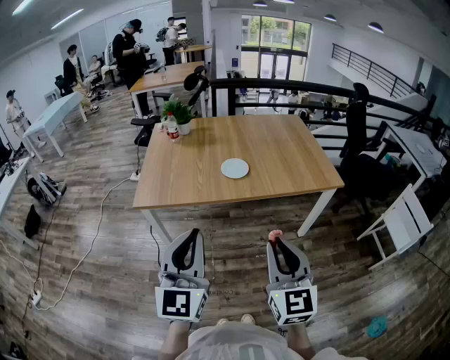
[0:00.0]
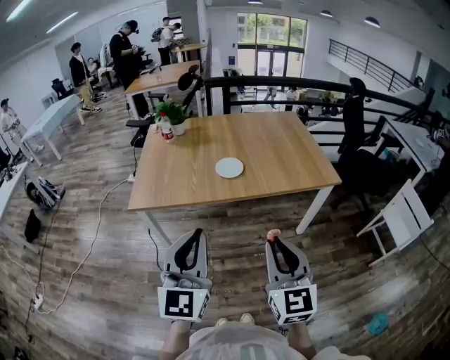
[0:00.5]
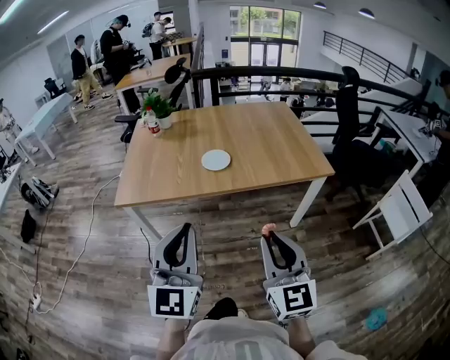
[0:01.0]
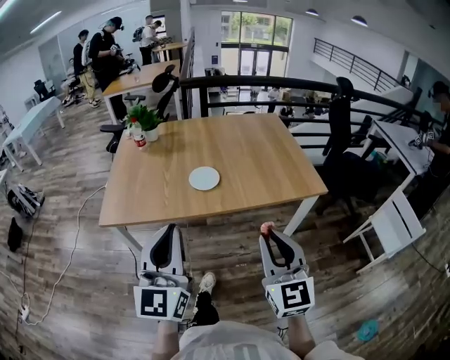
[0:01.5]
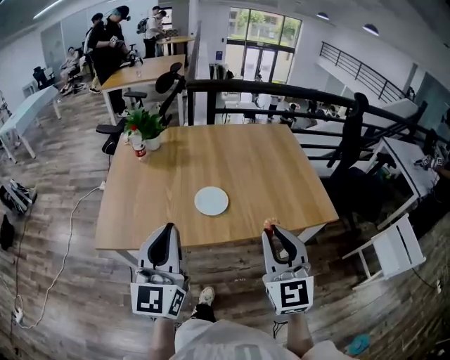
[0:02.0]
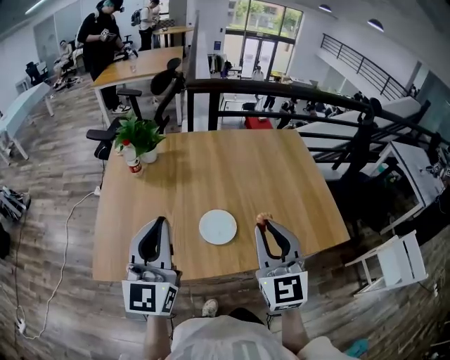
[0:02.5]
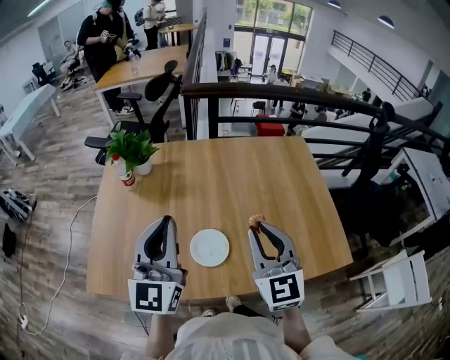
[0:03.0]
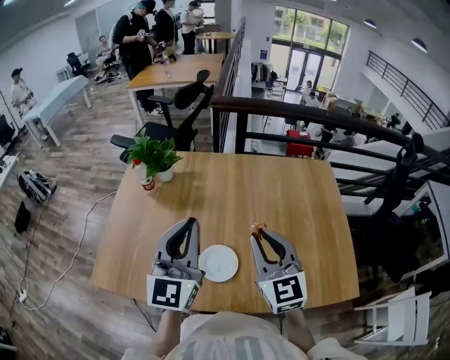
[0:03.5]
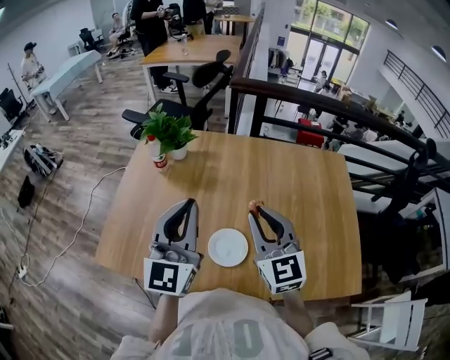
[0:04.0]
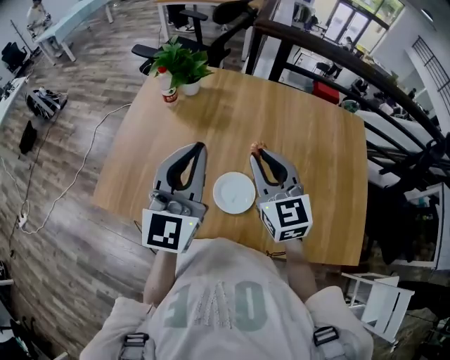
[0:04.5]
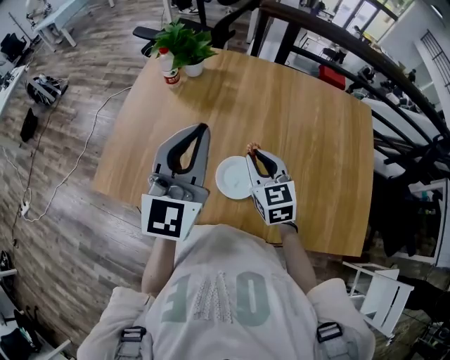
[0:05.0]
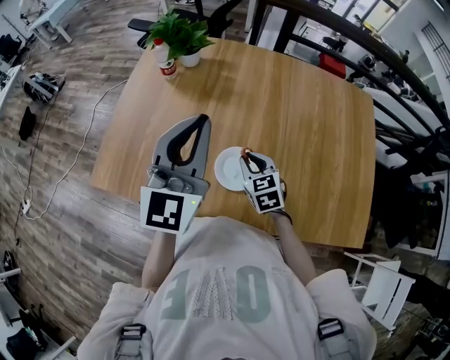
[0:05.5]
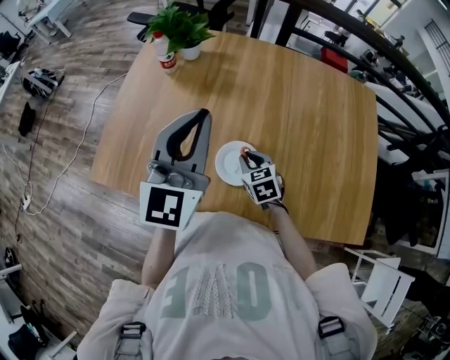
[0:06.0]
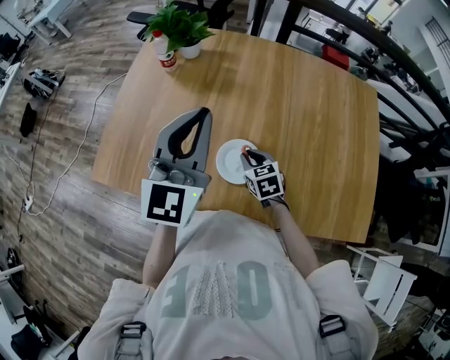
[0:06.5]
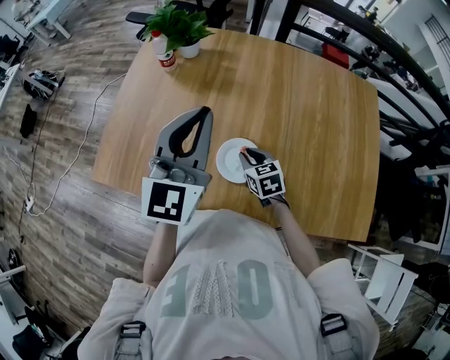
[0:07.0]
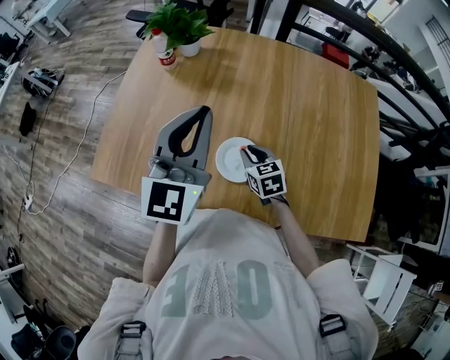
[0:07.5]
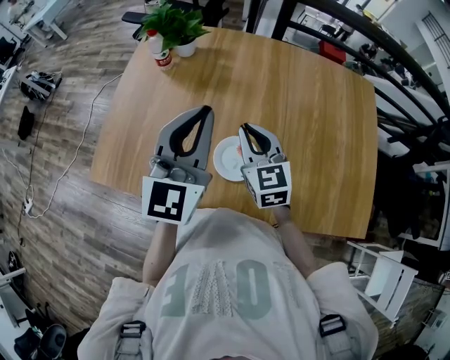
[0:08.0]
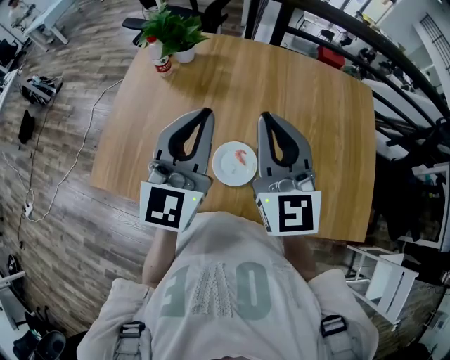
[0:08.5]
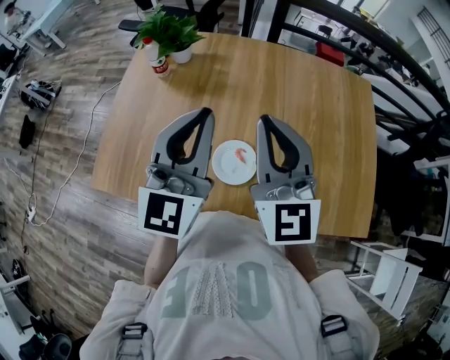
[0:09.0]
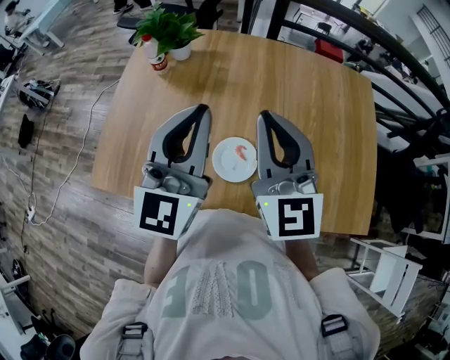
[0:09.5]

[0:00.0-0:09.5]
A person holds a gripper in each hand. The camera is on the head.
0:00.0 to 0:02.0: Both grippers move forward, about 25 cm.
0:02.0 to 0:04.0: The two grippers go approximately 30 cm forward. The right gripper changes its angle by some 30 degrees.
0:04.0 to 0:05.5: The right gripper moves downward, some 25 cm, and points its fingers about 30 degrees further downward.
0:05.5 to 0:07.5: The grippers move only a little.
0:07.5 to 0:09.5: The right gripper shifts about 35 cm upward, and angles its fingers upward, by approximately 40 degrees.

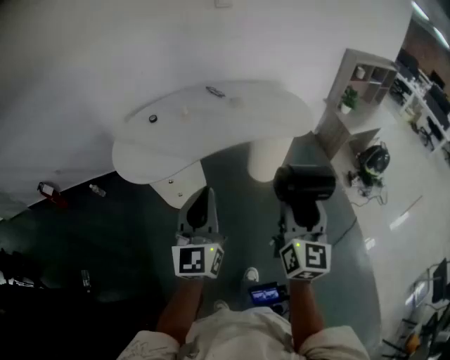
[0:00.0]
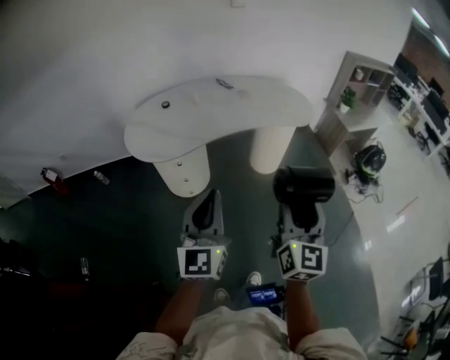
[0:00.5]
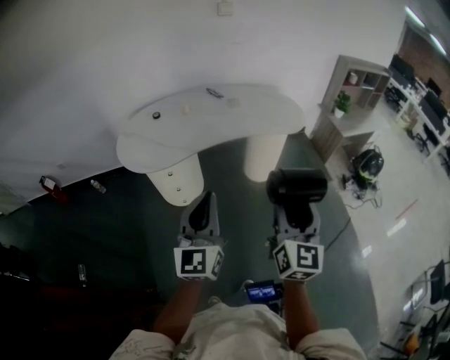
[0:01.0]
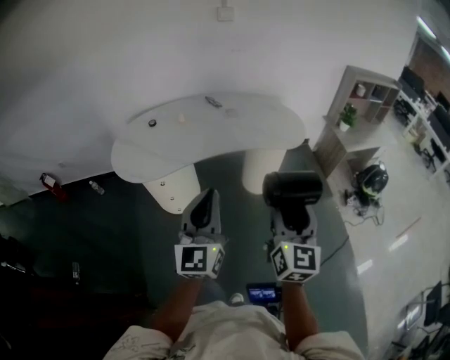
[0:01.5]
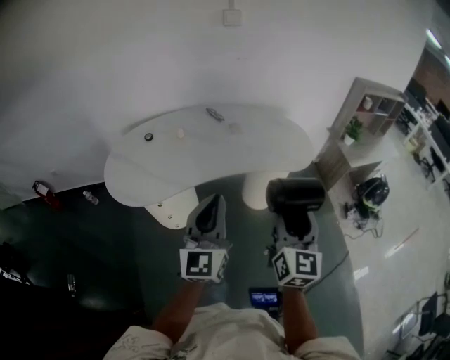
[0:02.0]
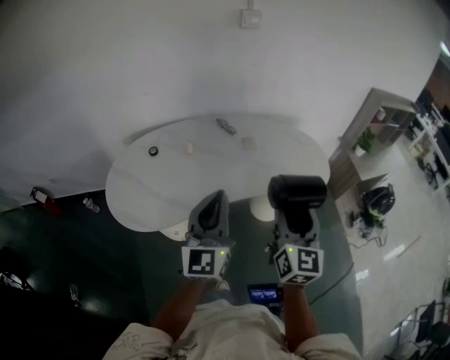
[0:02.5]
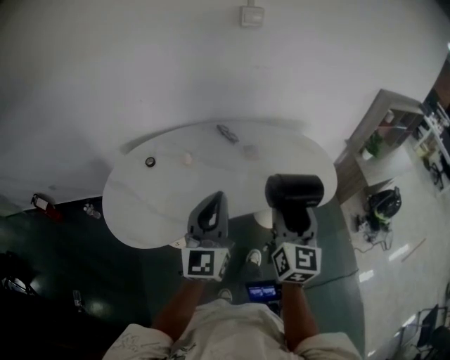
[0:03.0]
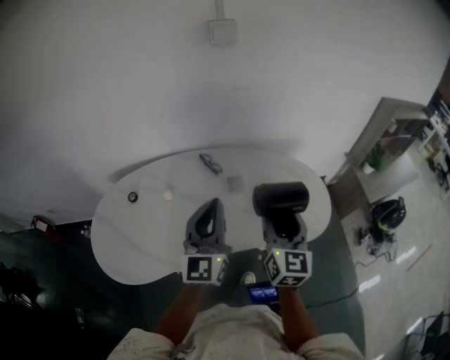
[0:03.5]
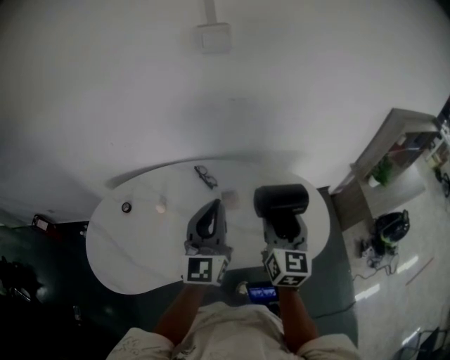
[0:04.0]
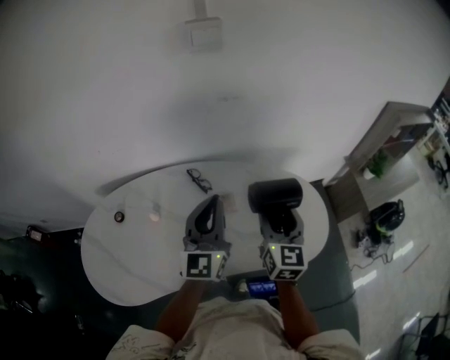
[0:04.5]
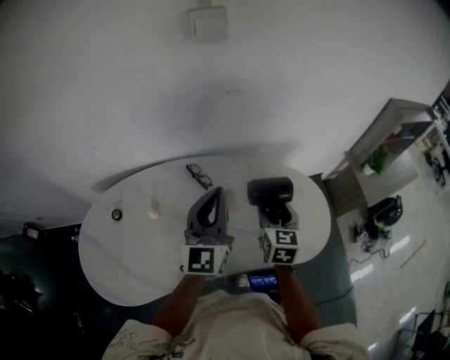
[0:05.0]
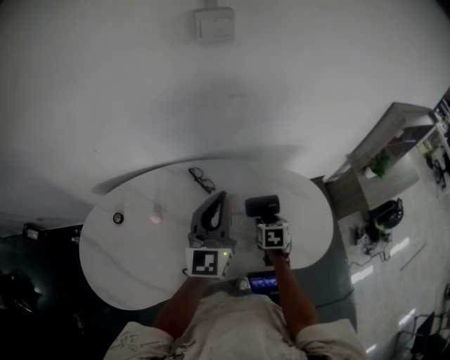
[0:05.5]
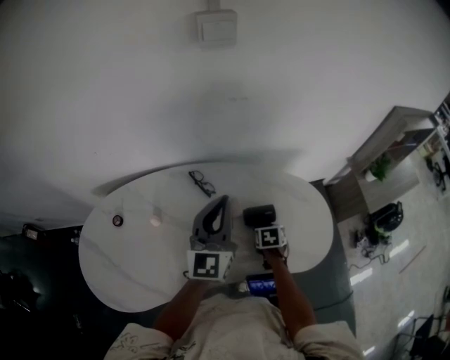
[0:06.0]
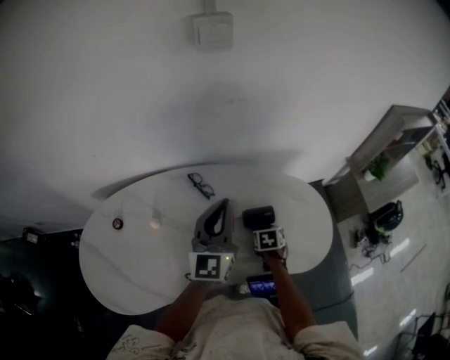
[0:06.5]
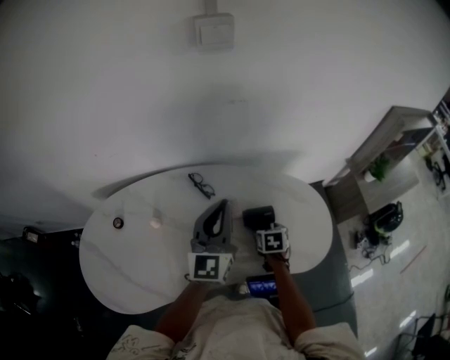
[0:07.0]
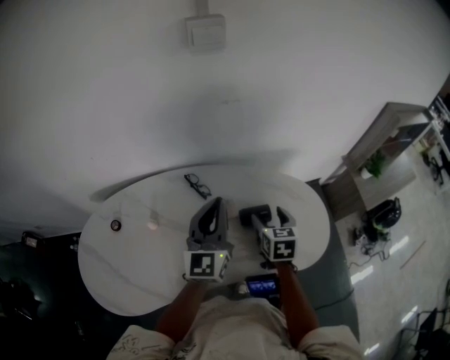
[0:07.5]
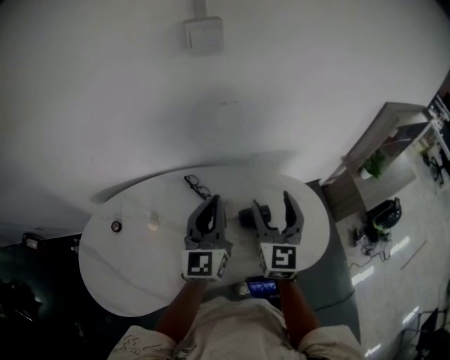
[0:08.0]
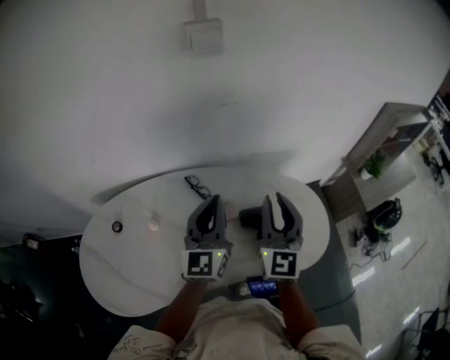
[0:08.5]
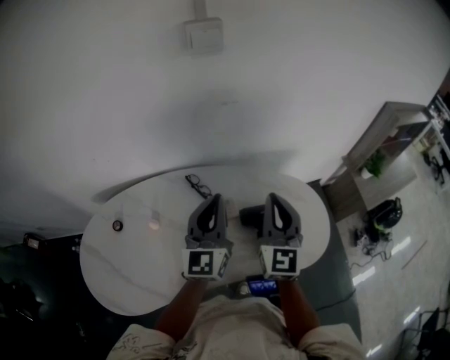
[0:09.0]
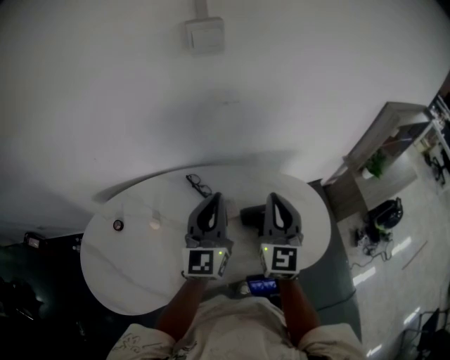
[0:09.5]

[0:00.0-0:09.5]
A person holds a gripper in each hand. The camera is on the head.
0:00.0 to 0:02.0: The left gripper travels forward and to the right by about 10 cm. The right gripper moves forward, roughly 10 cm.
0:02.0 to 0:04.0: The pair of grippers is taken forward, roughly 40 cm.
0:04.0 to 0:05.5: The left gripper shifts some 10 cm forward, while the right gripper heads downward, covering some 25 cm, and angles its fingers downward, by roughly 50 degrees.
0:05.5 to 0:07.5: The right gripper goes approximately 10 cm upward.
0:07.5 to 0:09.5: The right gripper shifts about 15 cm upward, tilts its fingers approximately 40 degrees upward, and closes.

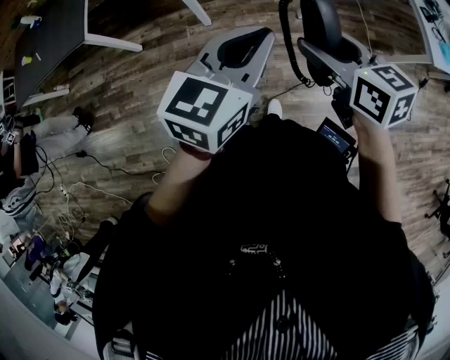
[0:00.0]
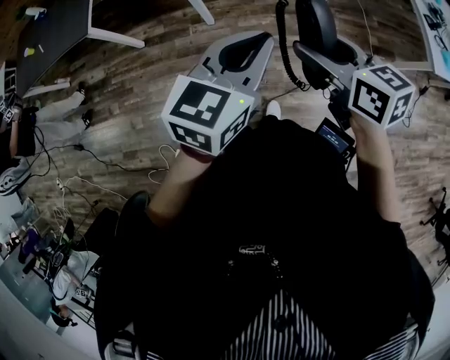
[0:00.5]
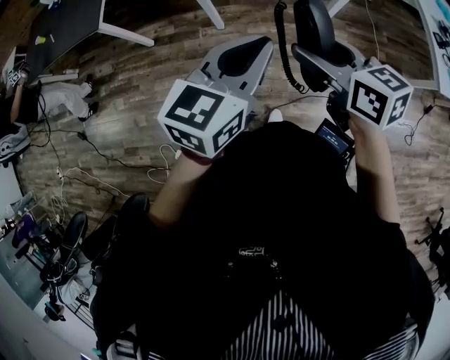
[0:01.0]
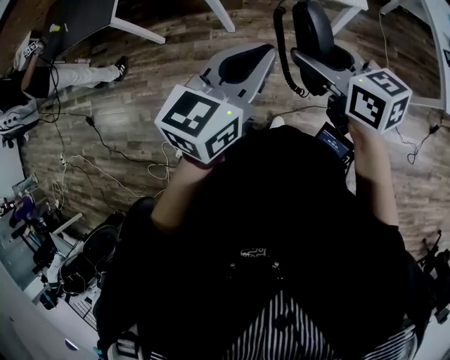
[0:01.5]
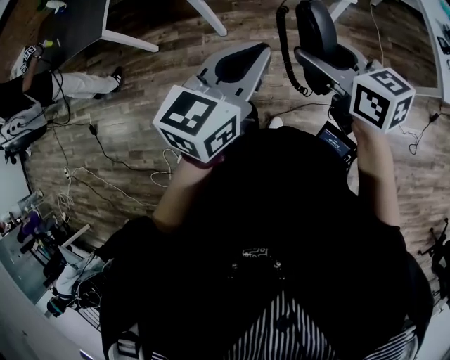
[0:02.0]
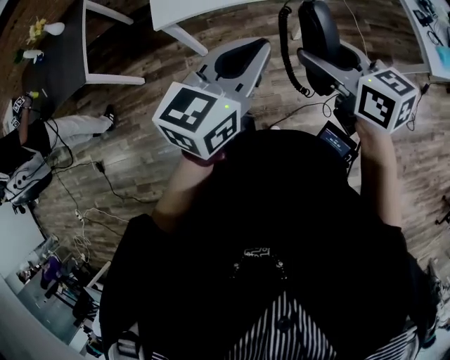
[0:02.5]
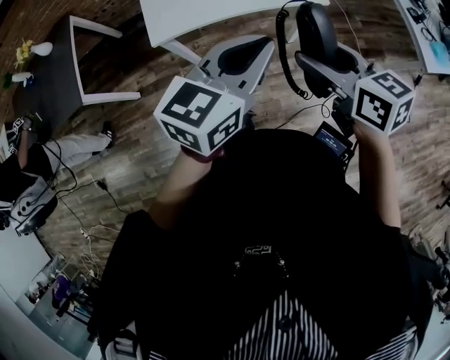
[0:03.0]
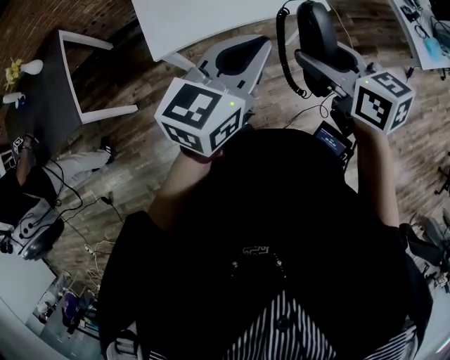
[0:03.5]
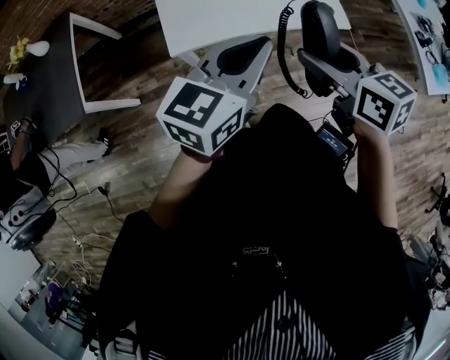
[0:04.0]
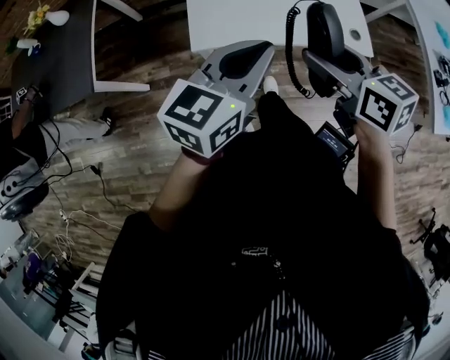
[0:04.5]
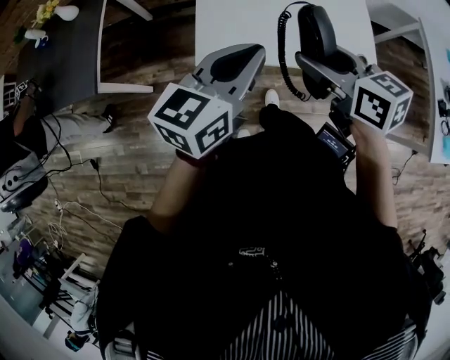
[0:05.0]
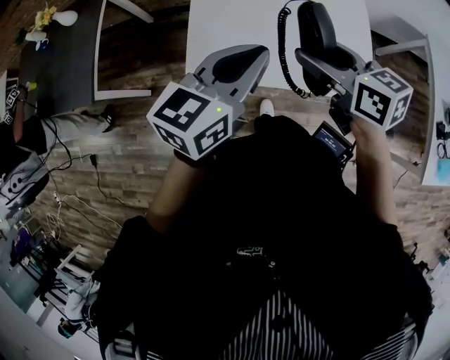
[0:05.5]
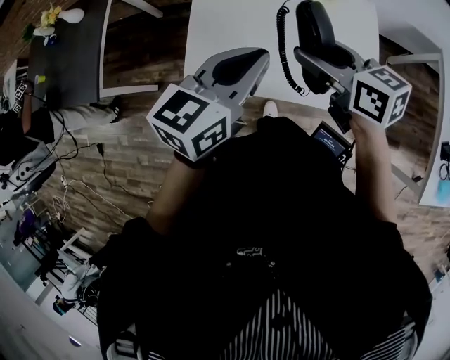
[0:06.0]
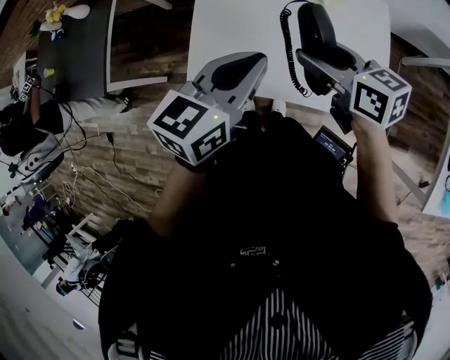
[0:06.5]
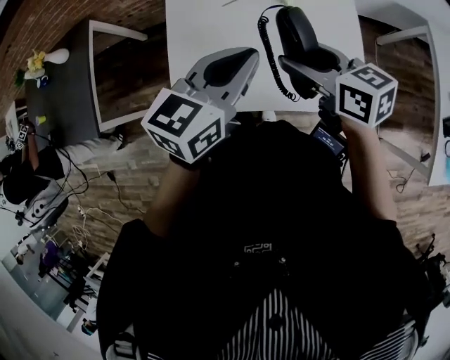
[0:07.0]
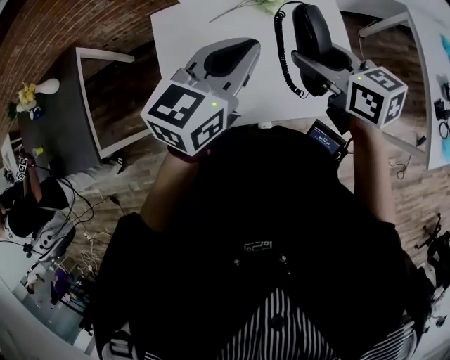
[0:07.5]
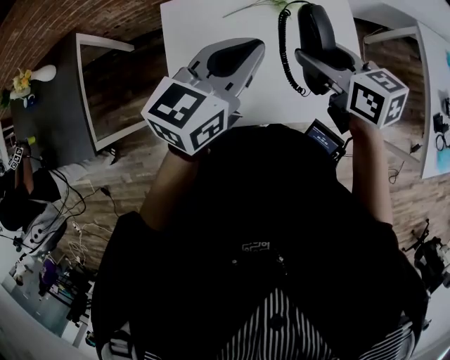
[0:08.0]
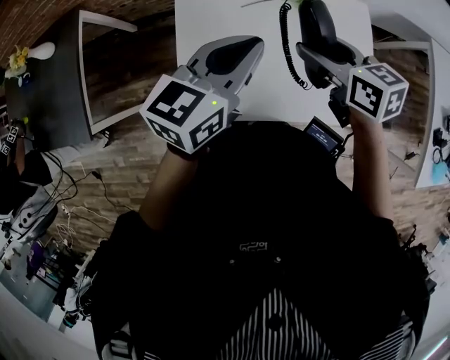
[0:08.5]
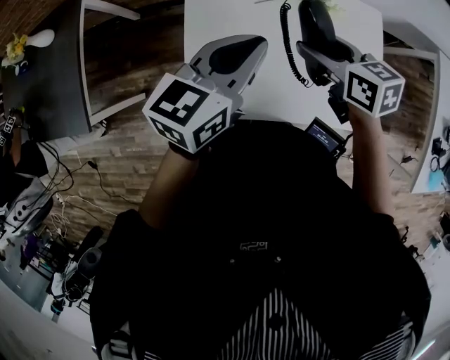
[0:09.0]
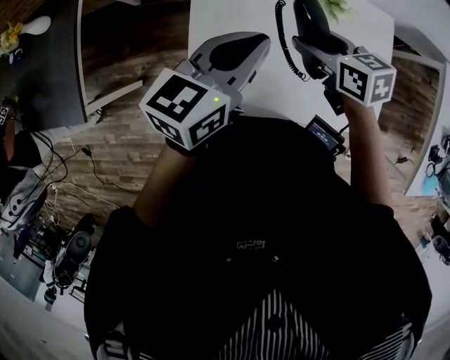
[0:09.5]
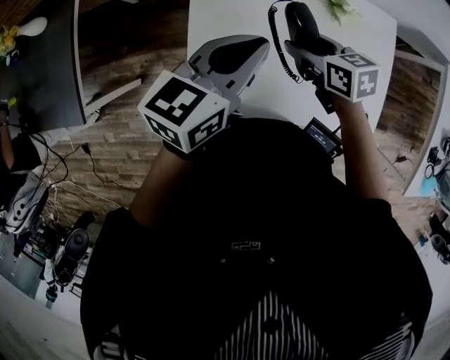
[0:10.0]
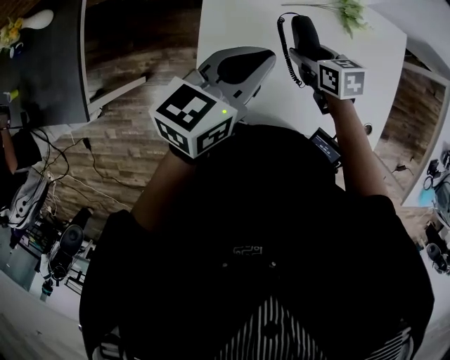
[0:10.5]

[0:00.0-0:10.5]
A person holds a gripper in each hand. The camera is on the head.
0:00.0 to 0:02.0: There are only small adjustments of the grippers.
0:02.0 to 0:04.0: Both grippers move forward and to the left, roughly 25 cm.
0:04.0 to 0:06.5: The grippers both shift forward by roughly 25 cm. The left gripper turns by about 20 degrees, while the right gripper swivels some 30 degrees.
0:06.5 to 0:08.5: The grippers both shift forward by approximately 5 cm. The left gripper reaches roughly 10 cm to the right, then returns.
0:08.5 to 0:10.5: The right gripper goes about 20 cm downward; the left gripper heads downward, covering about 5 cm.
